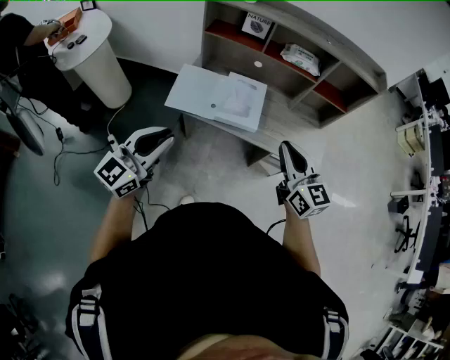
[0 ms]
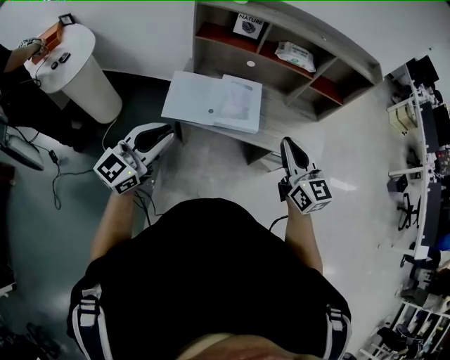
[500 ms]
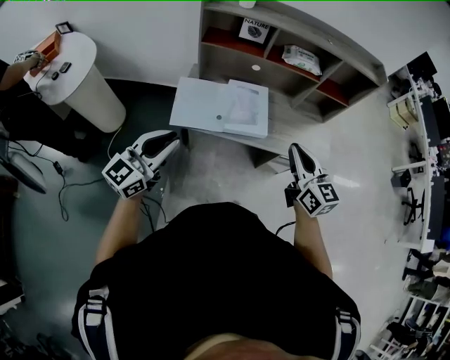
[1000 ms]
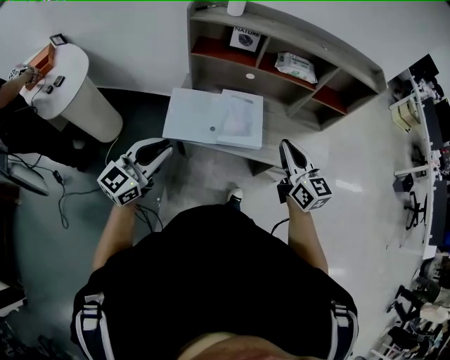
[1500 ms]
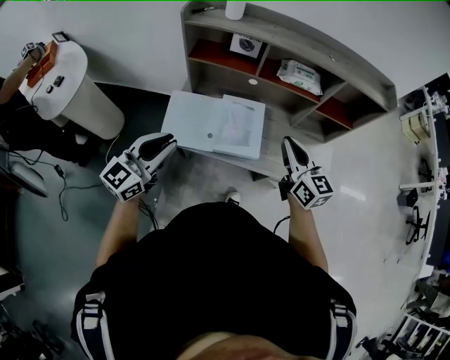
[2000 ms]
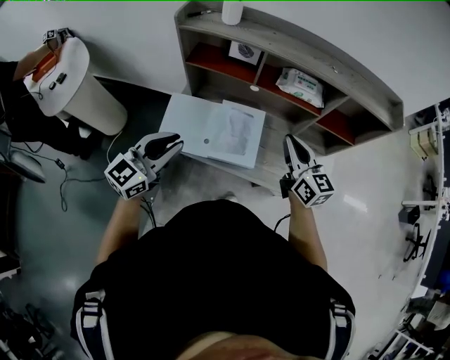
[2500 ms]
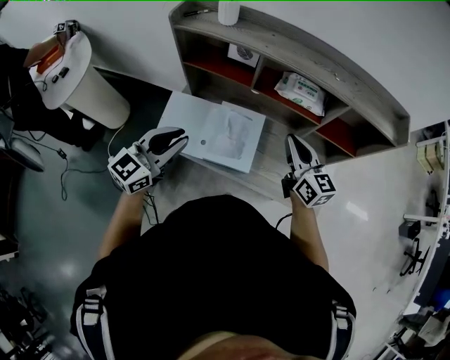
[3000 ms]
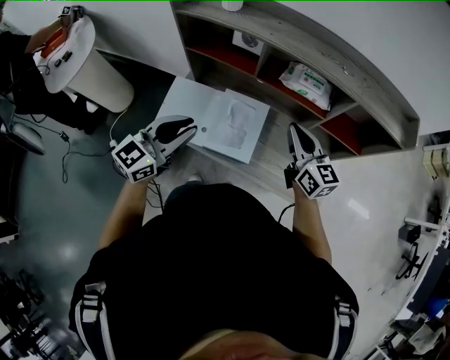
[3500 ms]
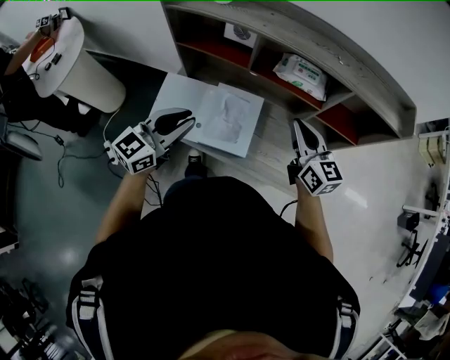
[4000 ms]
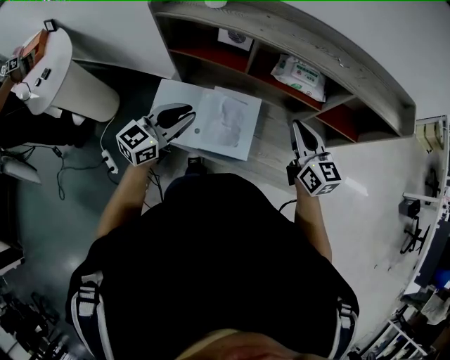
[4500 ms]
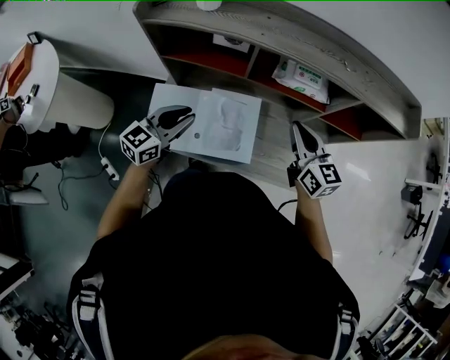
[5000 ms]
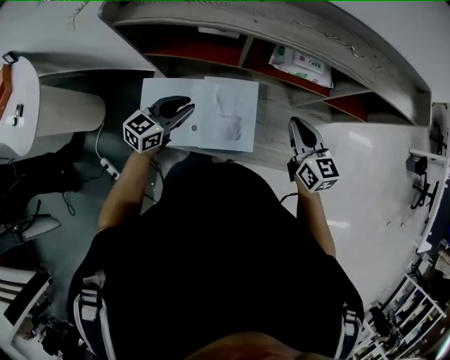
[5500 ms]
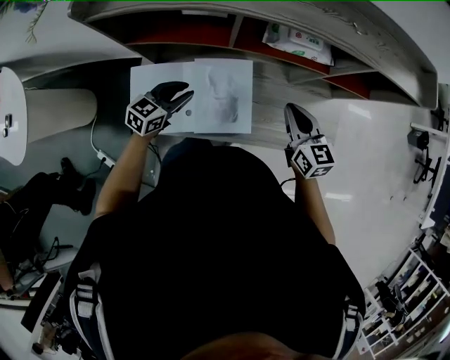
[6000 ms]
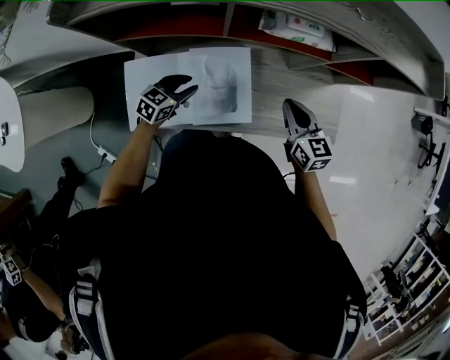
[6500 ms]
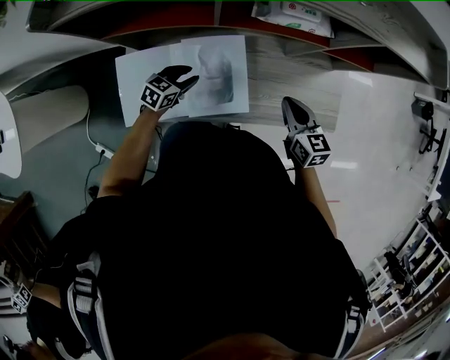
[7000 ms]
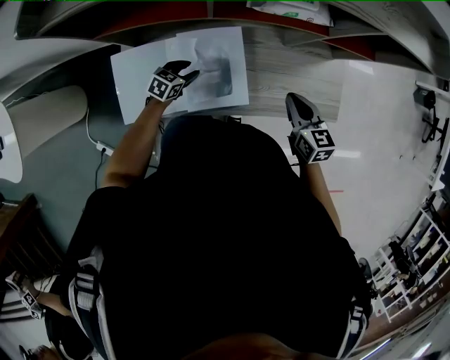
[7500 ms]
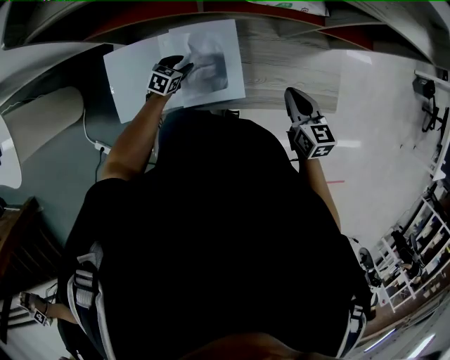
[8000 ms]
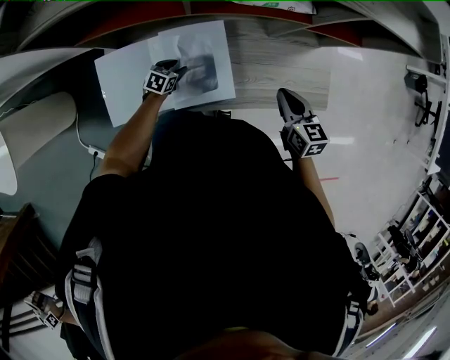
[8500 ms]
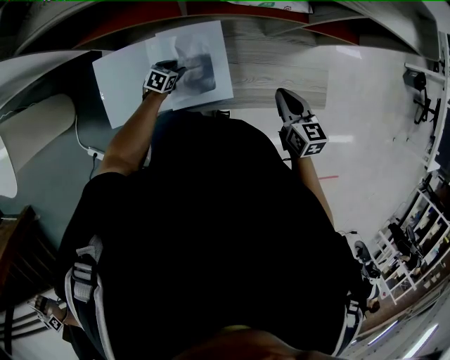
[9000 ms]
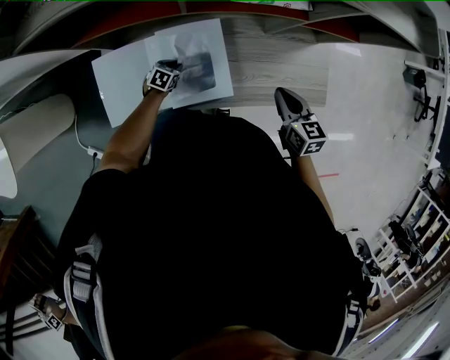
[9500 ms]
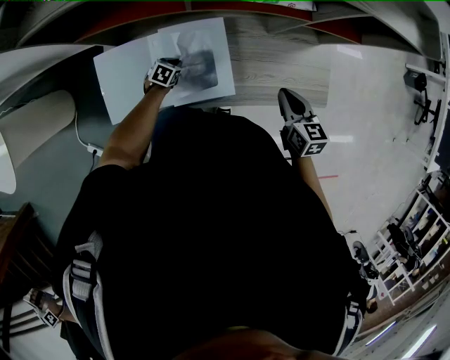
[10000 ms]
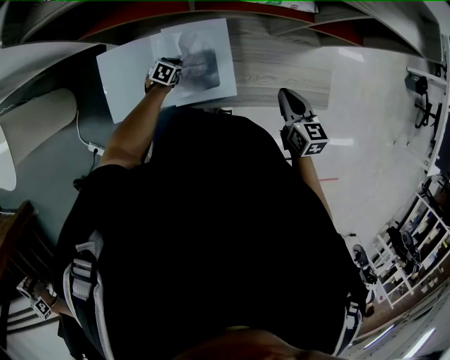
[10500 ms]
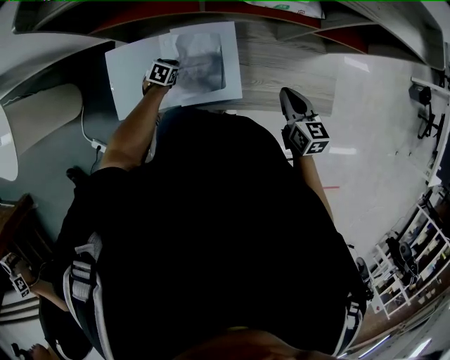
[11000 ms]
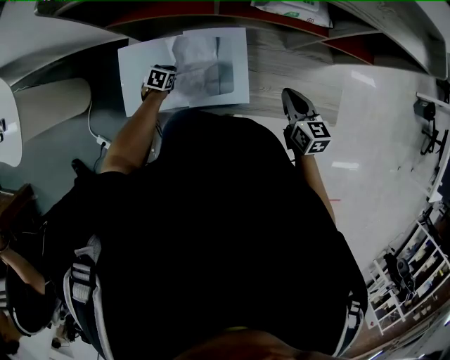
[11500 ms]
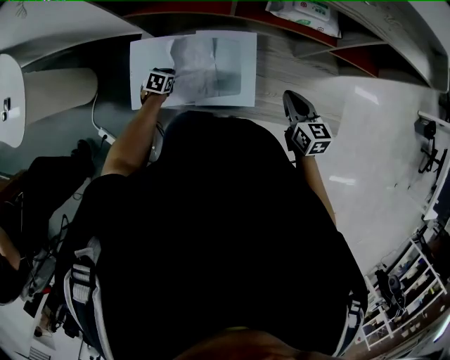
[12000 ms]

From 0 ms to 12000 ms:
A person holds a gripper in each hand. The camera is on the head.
From 0 ms to 2000 ms: The grippers both shift forward by some 20 cm.
From 2000 ms to 4000 ms: The left gripper moves to the right and forward, approximately 15 cm. Meanwhile the right gripper travels forward and to the right by about 15 cm.
From 4000 ms to 6000 ms: The left gripper shifts about 25 cm downward and forward, and changes its angle by approximately 30 degrees. The right gripper moves downward, approximately 15 cm, and swivels some 20 degrees.
From 6000 ms to 8000 ms: The right gripper moves downward and to the right, about 10 cm; the left gripper moves downward, some 20 cm, and changes its angle by some 20 degrees.
From 8000 ms to 10000 ms: The left gripper moves downward, about 5 cm, and closes up.
From 10000 ms to 12000 ms: The left gripper goes roughly 15 cm to the left, backward and upward, while the right gripper heads to the left, covering about 5 cm.

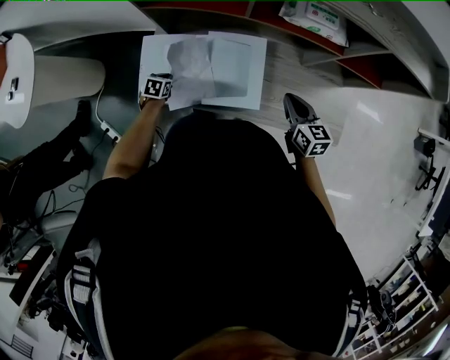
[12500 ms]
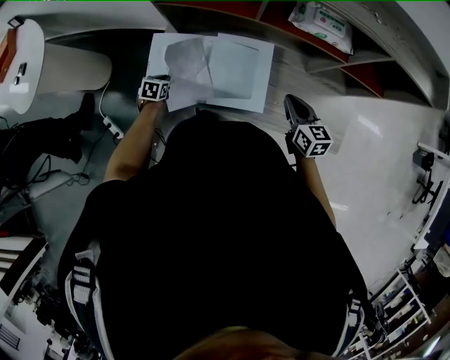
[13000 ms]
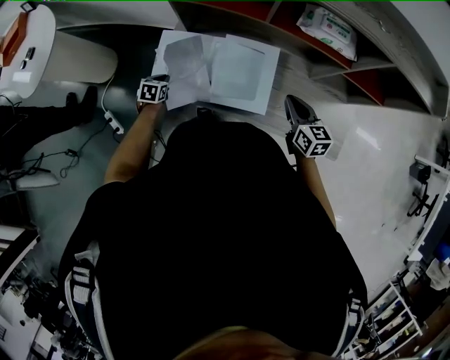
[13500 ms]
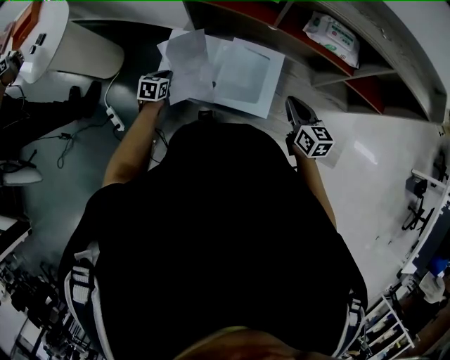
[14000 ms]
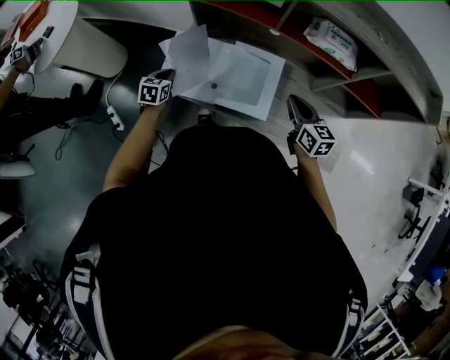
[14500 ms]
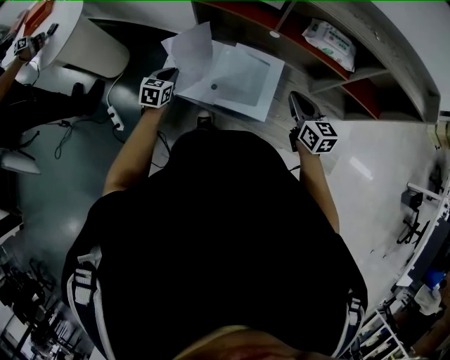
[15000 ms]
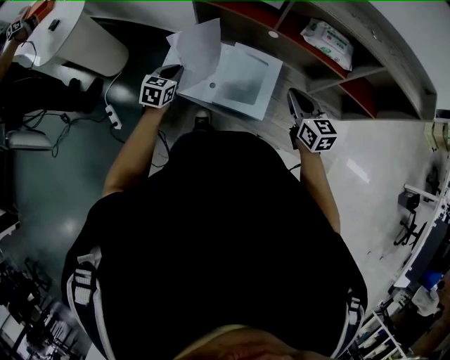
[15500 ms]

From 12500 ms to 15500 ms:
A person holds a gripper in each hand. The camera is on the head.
From 12500 ms to 14000 ms: The left gripper travels upward and to the left by about 10 cm.
From 14000 ms to 15500 ms: The left gripper travels upward and to the right by approximately 15 cm. The right gripper is displaced upward by roughly 5 cm.

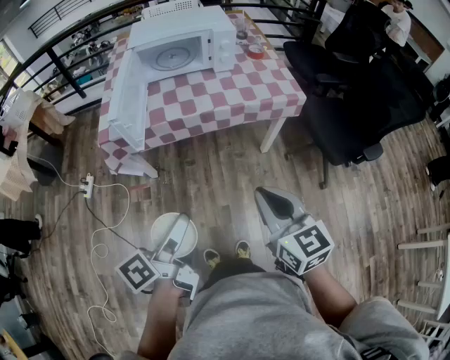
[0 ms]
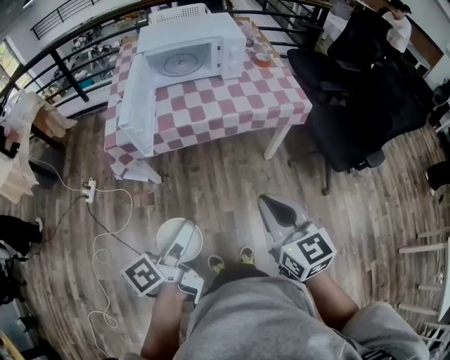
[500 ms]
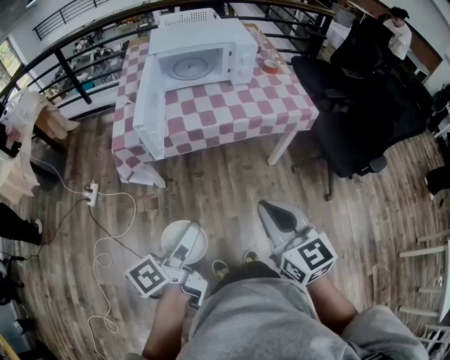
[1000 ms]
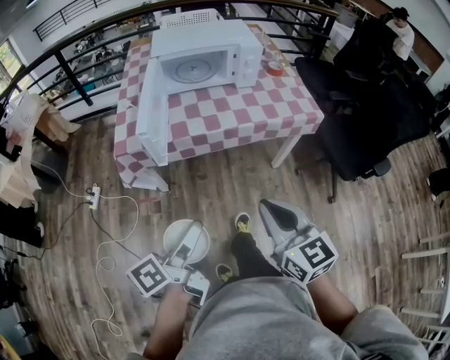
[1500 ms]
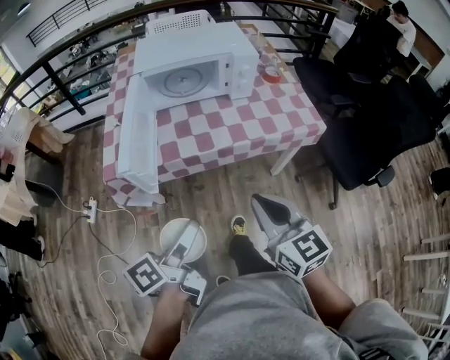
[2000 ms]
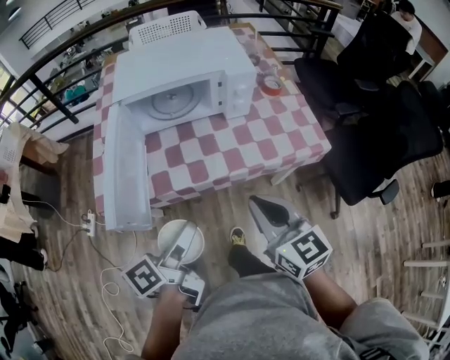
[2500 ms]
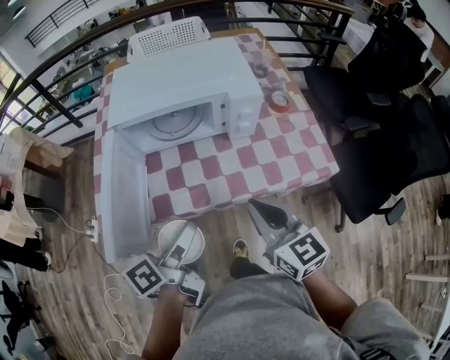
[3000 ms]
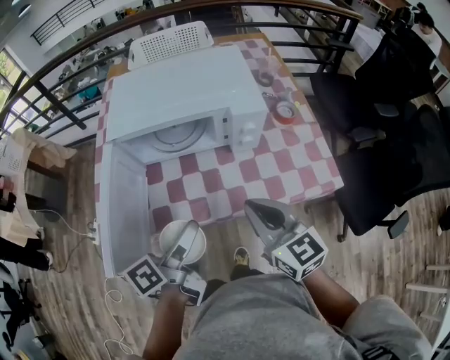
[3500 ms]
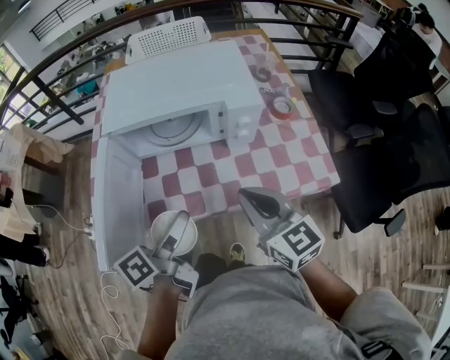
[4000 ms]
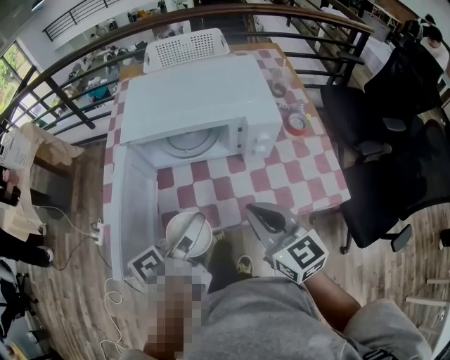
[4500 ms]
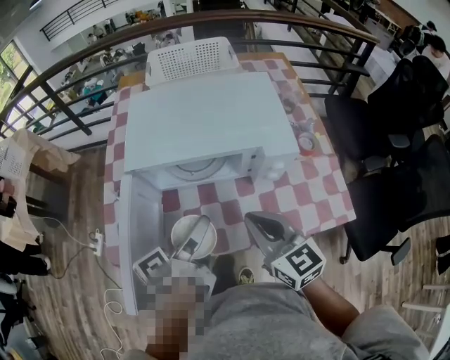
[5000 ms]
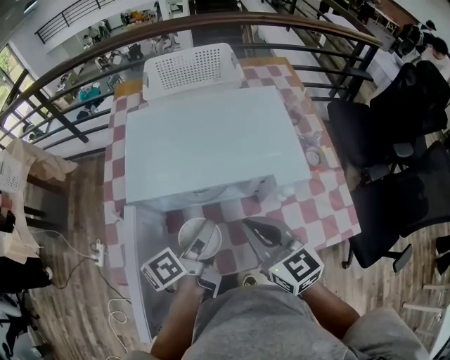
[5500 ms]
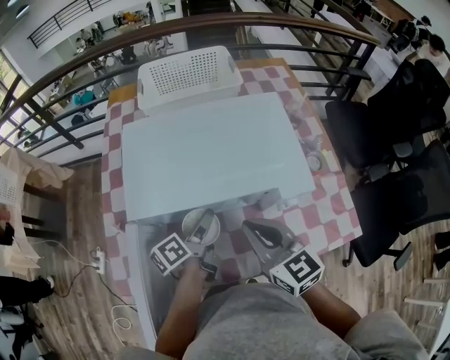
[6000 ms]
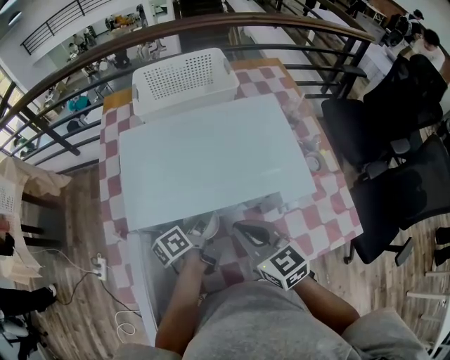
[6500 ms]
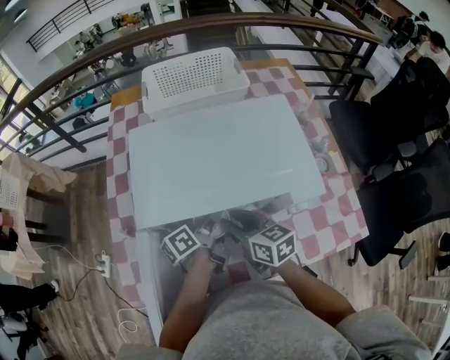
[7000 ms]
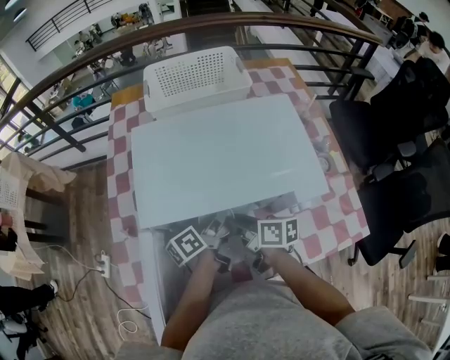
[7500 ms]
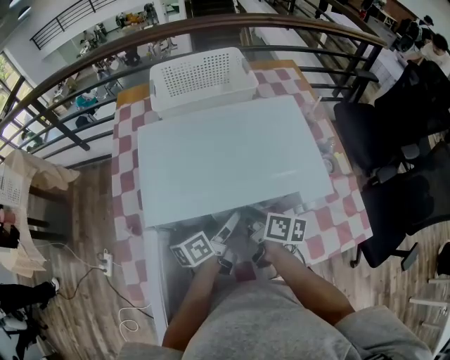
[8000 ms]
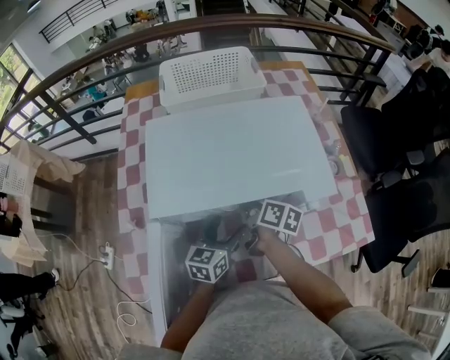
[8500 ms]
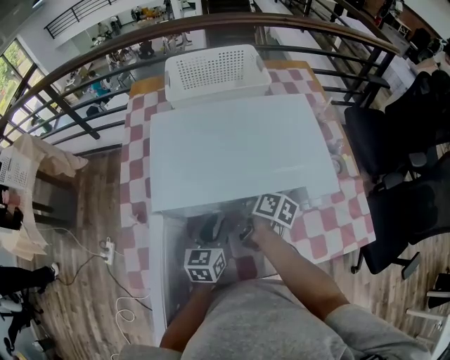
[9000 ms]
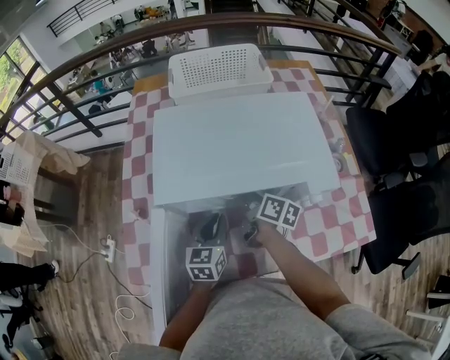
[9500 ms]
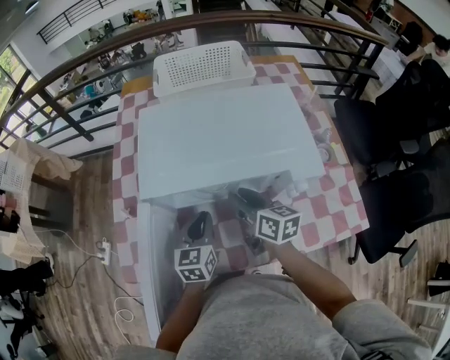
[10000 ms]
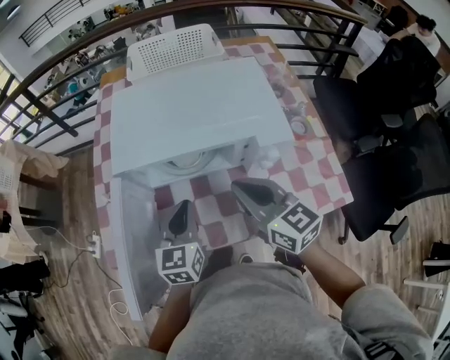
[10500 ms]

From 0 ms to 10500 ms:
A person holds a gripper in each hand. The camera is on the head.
From 0 ms to 2000 ms: The right gripper travels forward and to the left by about 15 cm. The left gripper shifts approximately 15 cm forward.
From 2000 ms to 4000 ms: The two grippers go roughly 30 cm forward.
From 4000 ms to 6500 ms: The left gripper is displaced forward and downward by some 30 cm. The right gripper heads forward and to the left, covering about 20 cm.
From 6500 ms to 8500 ms: The left gripper changes place by roughly 5 cm, and twists about 50 degrees clockwise, seen from behind, while the right gripper shifts approximately 15 cm downward and forward, twists approximately 60 degrees clockwise, seen from behind, and opens its fingers.
From 8500 ms to 10500 ms: The right gripper shifts roughly 20 cm upward and backward, rolls counterclockwise, seen from behind, by some 50 degrees, and closes its fingers; the left gripper moves upward and backward, some 10 cm, changes its angle by approximately 20 degrees, and closes its fingers.

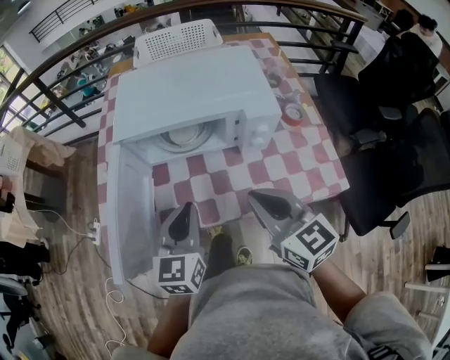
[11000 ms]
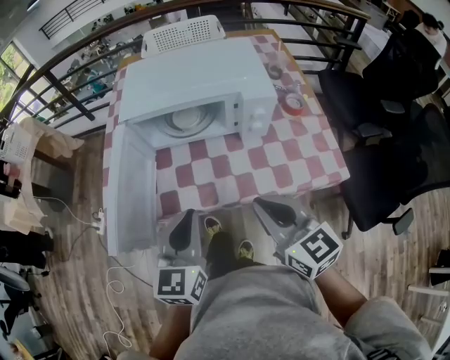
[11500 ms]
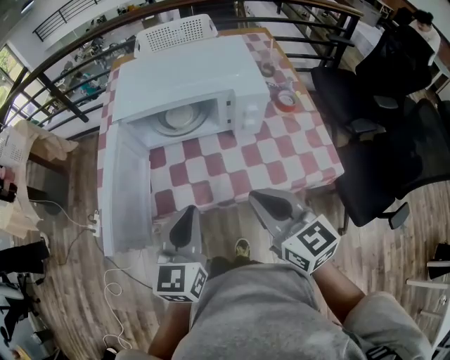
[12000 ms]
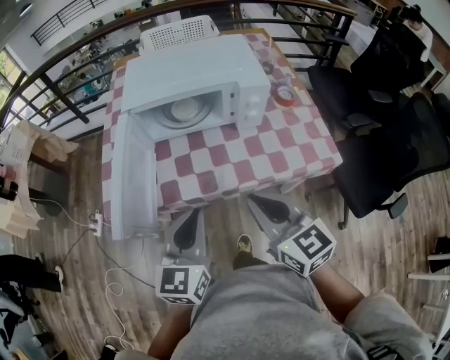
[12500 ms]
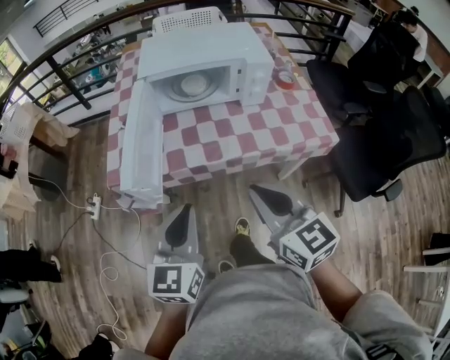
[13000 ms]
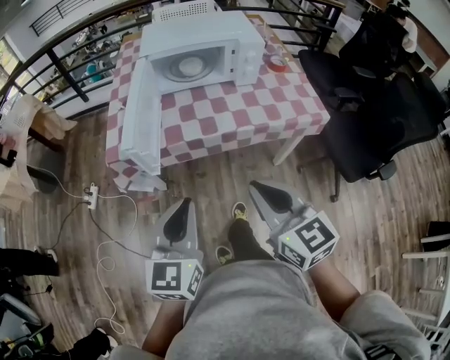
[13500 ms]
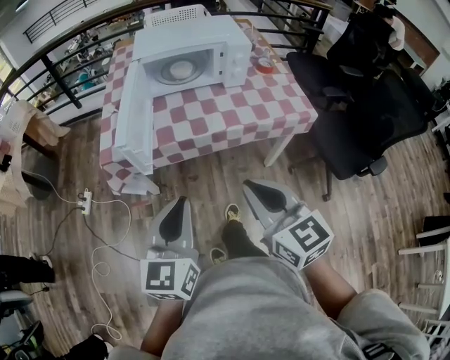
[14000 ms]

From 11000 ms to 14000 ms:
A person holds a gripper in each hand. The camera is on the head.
From 11000 ms to 12500 ms: Both grippers move backward, roughly 10 cm.
From 12500 ms to 14000 ms: The two grippers go some 20 cm backward.
